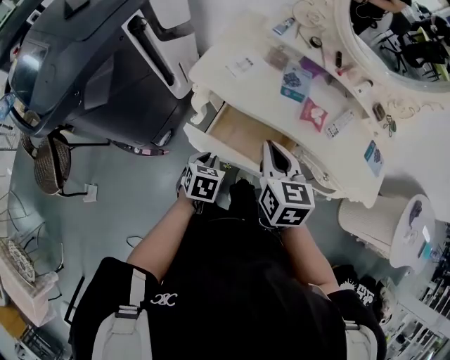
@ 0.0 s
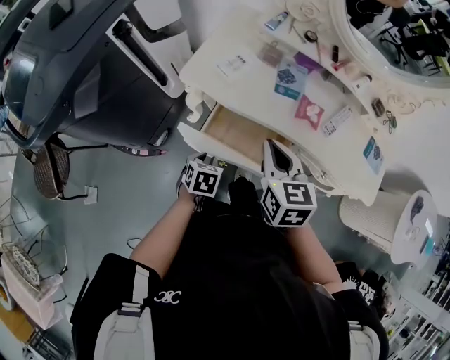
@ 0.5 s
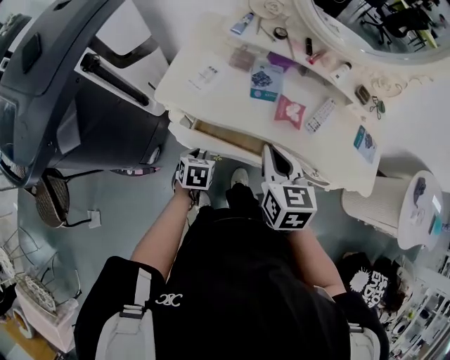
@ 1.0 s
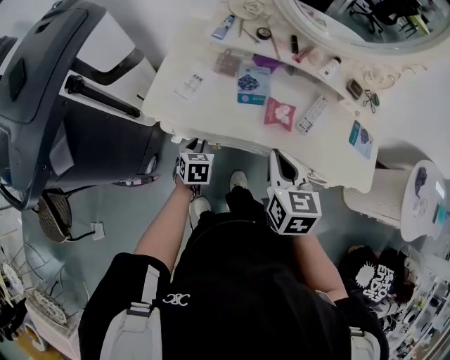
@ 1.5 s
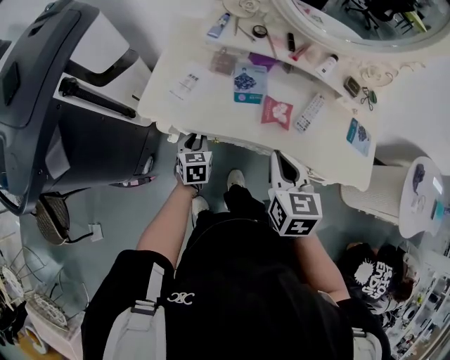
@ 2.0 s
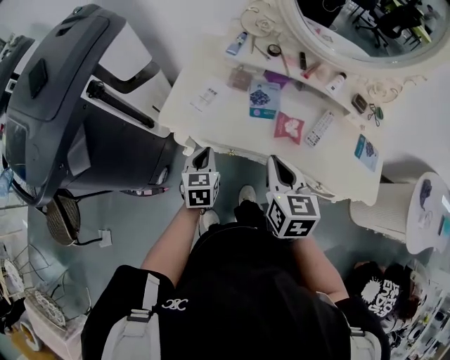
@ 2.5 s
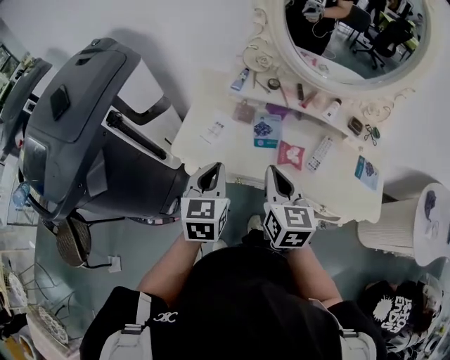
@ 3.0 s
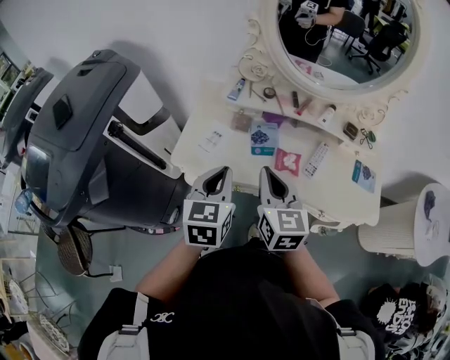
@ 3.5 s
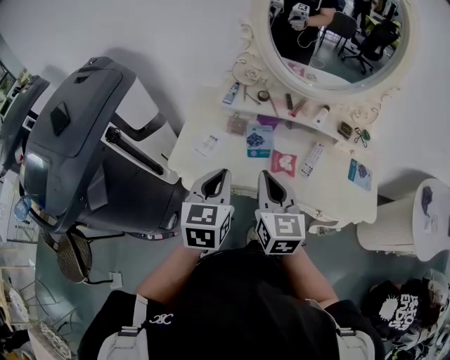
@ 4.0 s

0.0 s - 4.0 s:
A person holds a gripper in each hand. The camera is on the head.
0.0 s - 2.0 s: The left gripper is displaced forward by some 15 cm, while the right gripper shifts some 15 cm to the right.
2.0 s - 4.0 s: The left gripper moves upward, some 30 cm, and rotates some 20 degrees. Meanwhile the right gripper goes about 10 cm upward and to the left, and turns by about 20 degrees.

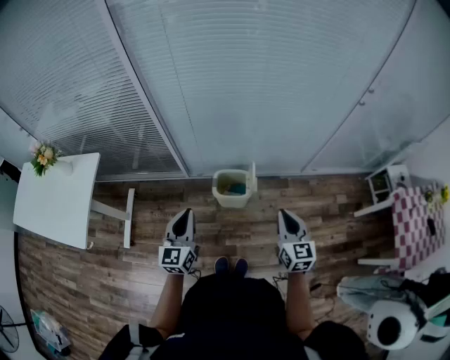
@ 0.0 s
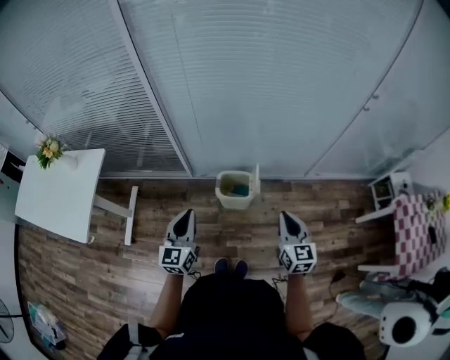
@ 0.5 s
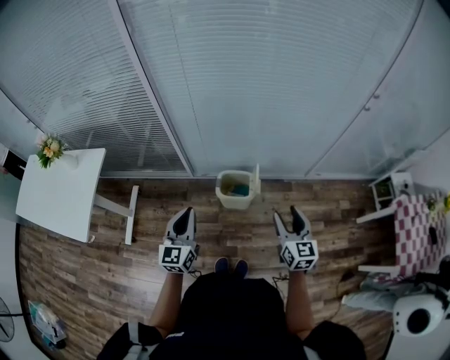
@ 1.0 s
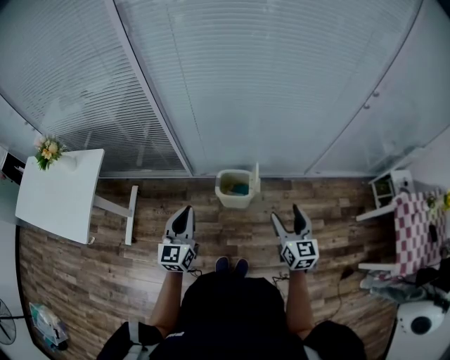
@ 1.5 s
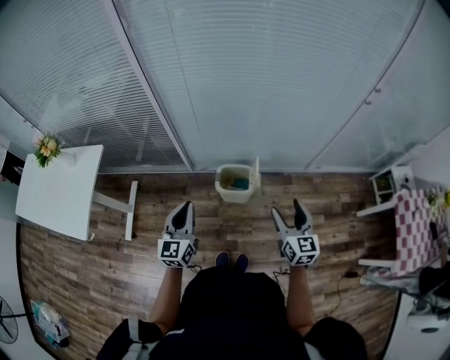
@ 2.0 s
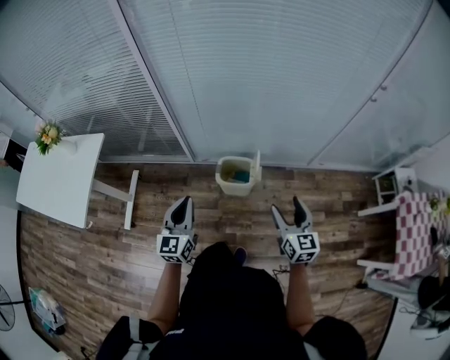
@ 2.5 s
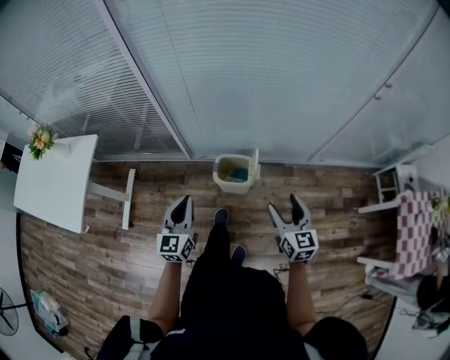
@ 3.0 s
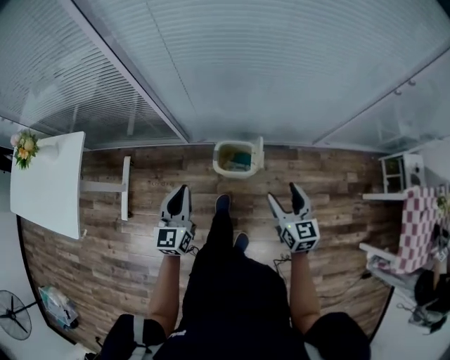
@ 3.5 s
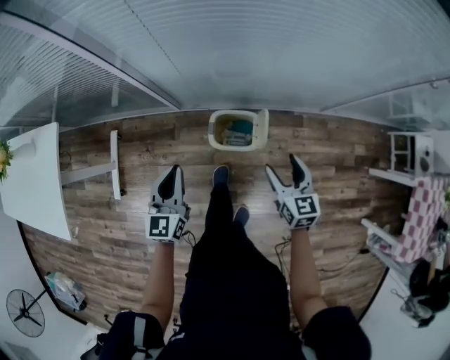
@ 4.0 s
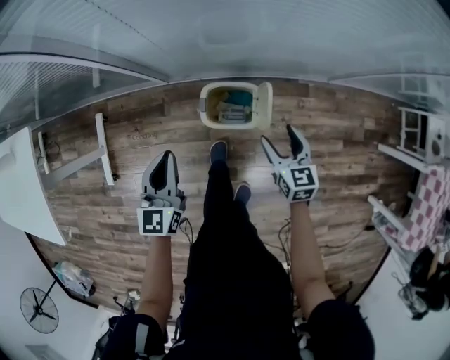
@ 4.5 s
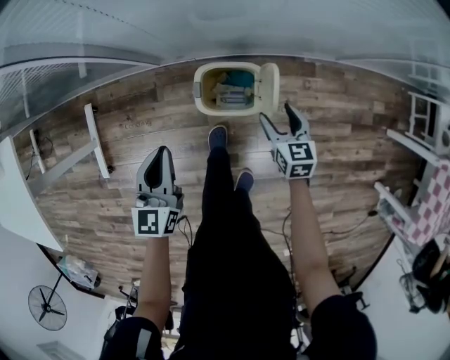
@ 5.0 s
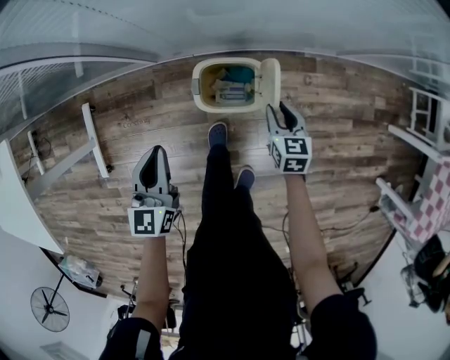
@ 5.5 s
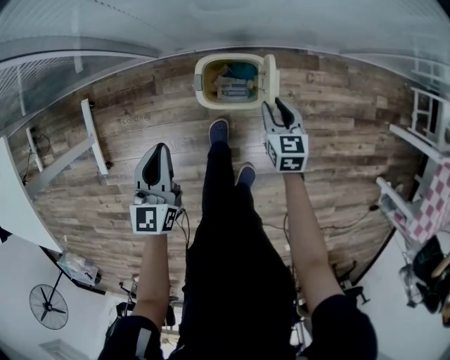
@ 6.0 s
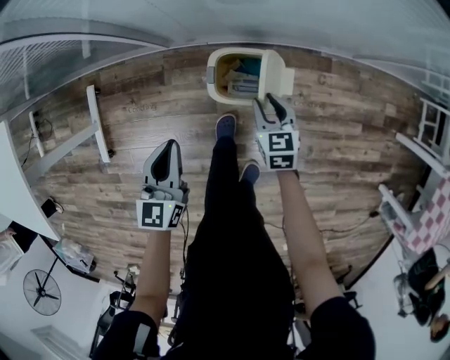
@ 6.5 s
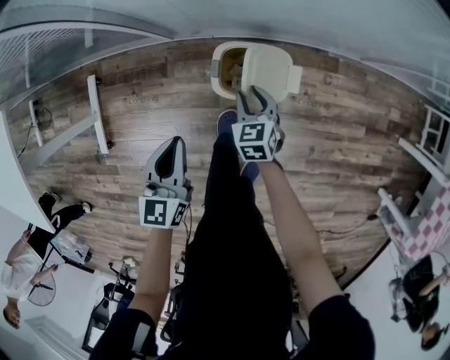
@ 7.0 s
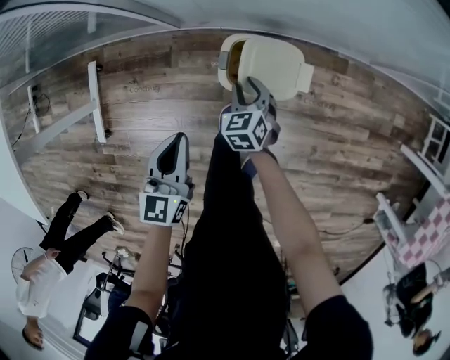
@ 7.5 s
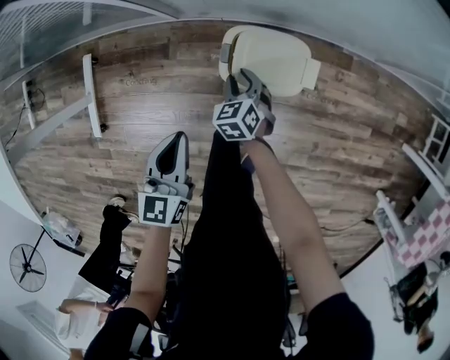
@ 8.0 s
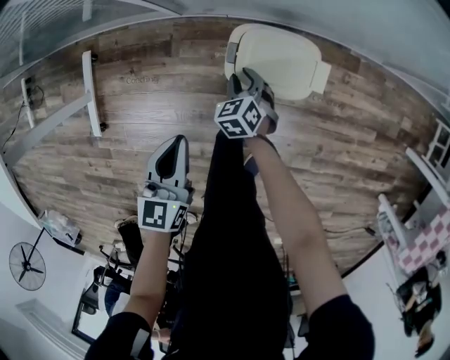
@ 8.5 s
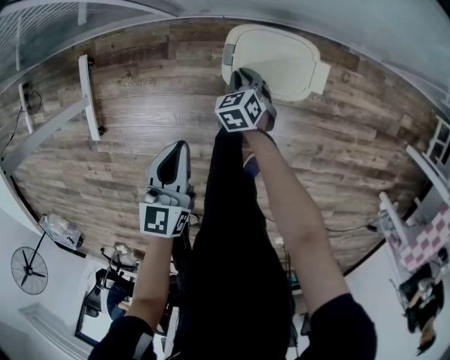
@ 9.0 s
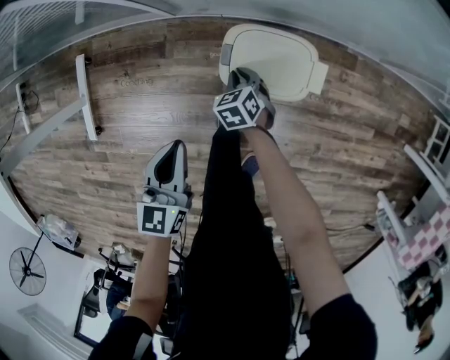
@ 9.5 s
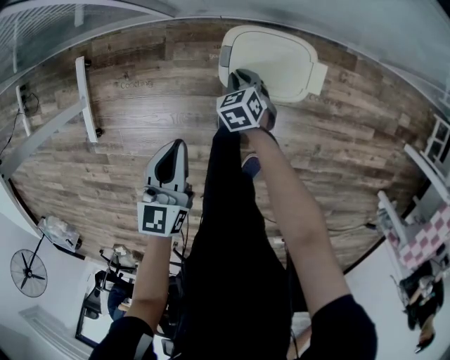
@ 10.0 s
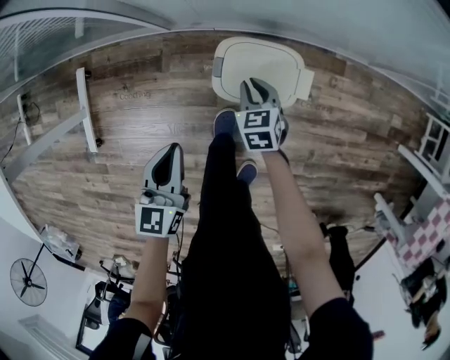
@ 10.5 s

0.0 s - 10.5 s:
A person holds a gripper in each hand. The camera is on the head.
0.0 s - 2.0 s: The right gripper opens.
2.0 s - 4.0 s: The right gripper is displaced downward and forward by about 20 cm, while the left gripper moves forward and downward, some 20 cm.
4.0 s - 6.5 s: The grippers both shift downward by roughly 20 cm. The right gripper closes up.
6.5 s - 8.5 s: The left gripper goes about 5 cm downward. The right gripper is displaced downward and to the left by about 20 cm, and changes its angle by approximately 30 degrees.
8.5 s - 10.5 s: The right gripper travels to the right and upward by approximately 10 cm.

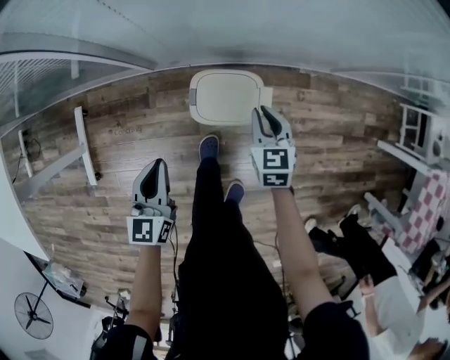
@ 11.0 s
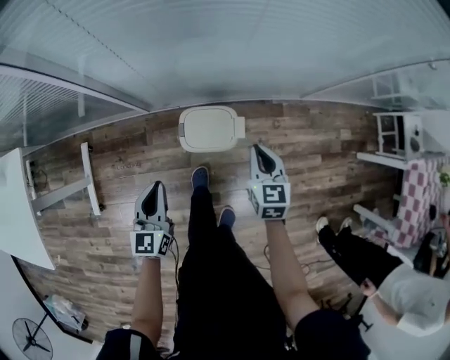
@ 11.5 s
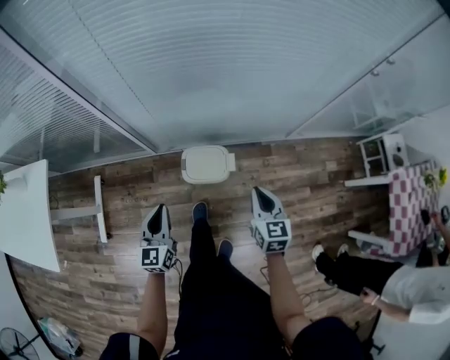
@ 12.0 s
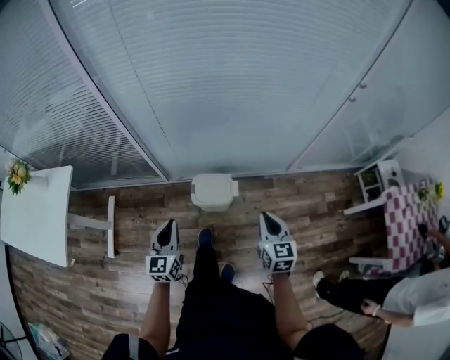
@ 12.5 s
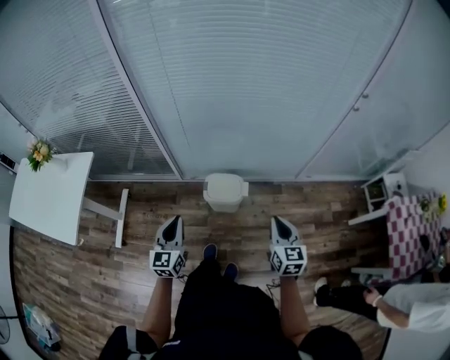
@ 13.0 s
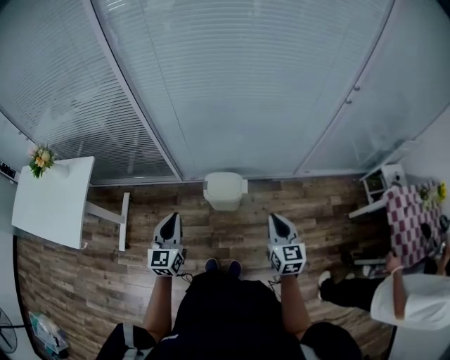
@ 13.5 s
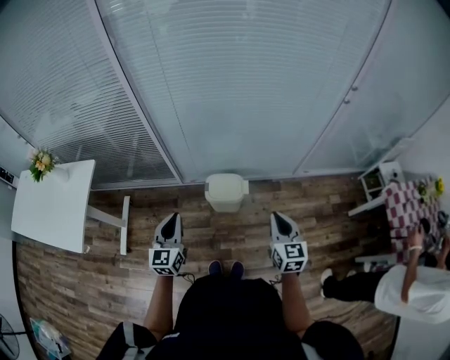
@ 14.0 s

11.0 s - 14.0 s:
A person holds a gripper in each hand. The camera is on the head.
11.0 s - 12.5 s: The right gripper shifts roughly 35 cm upward, backward and to the right, while the left gripper goes approximately 25 cm upward and backward.
12.5 s - 14.0 s: The left gripper goes some 10 cm upward and backward. The right gripper travels backward and upward by approximately 10 cm.

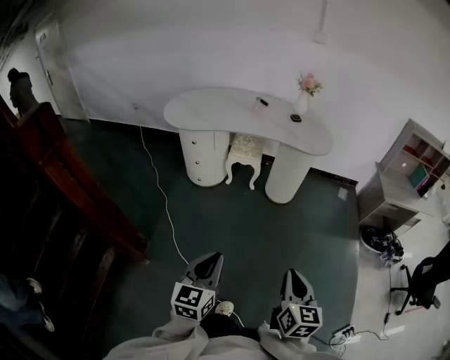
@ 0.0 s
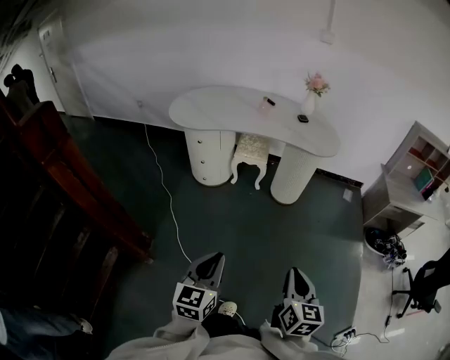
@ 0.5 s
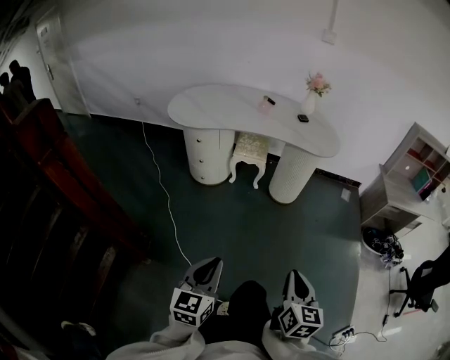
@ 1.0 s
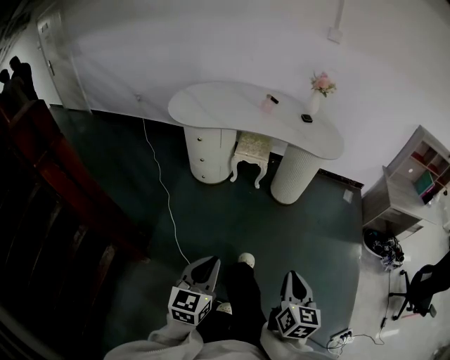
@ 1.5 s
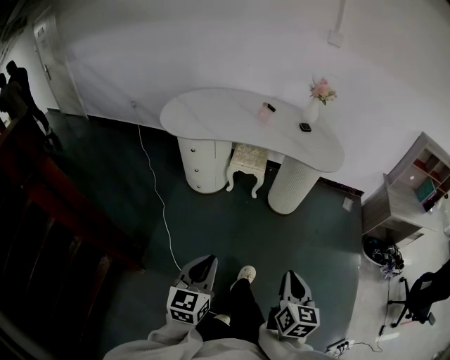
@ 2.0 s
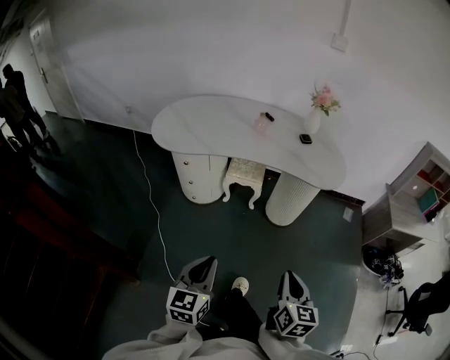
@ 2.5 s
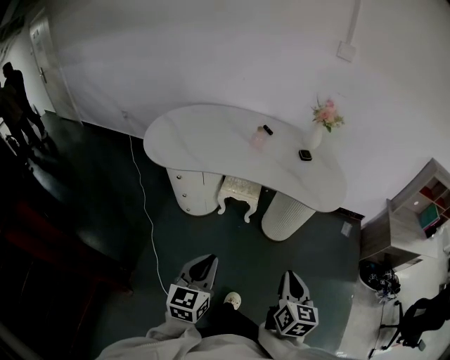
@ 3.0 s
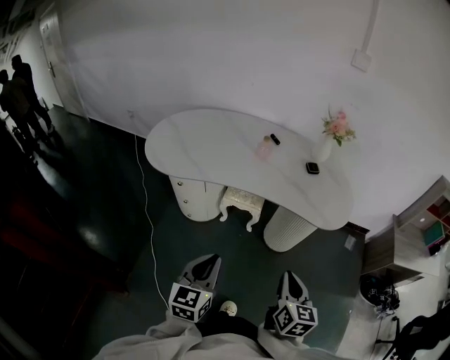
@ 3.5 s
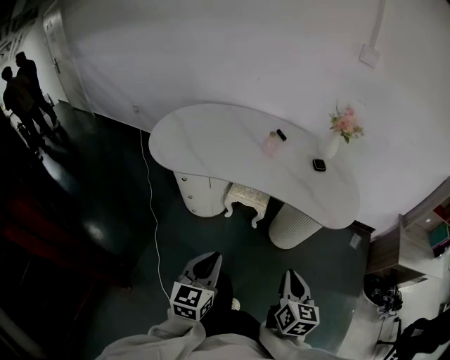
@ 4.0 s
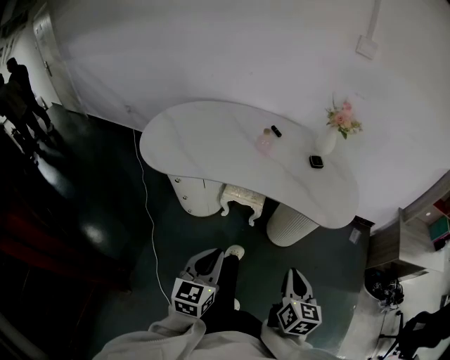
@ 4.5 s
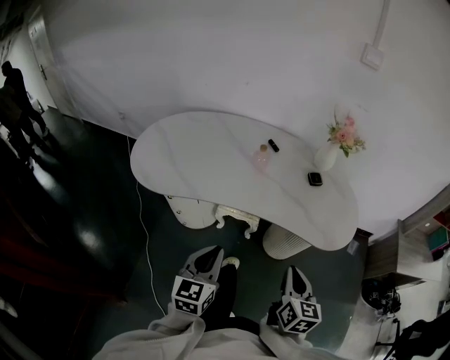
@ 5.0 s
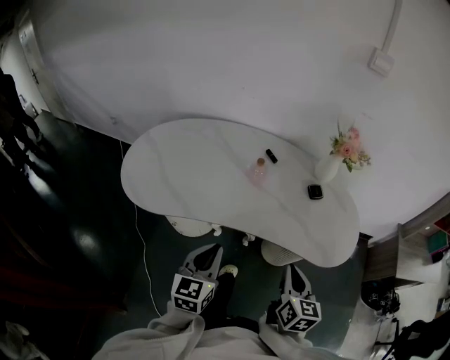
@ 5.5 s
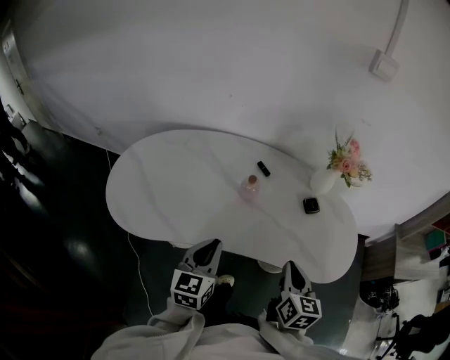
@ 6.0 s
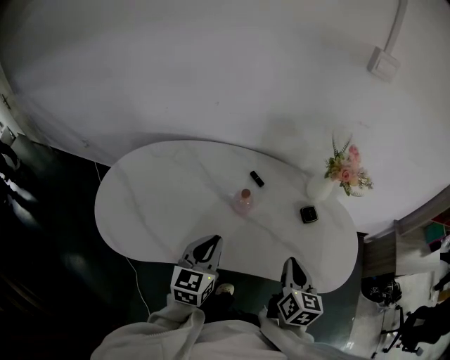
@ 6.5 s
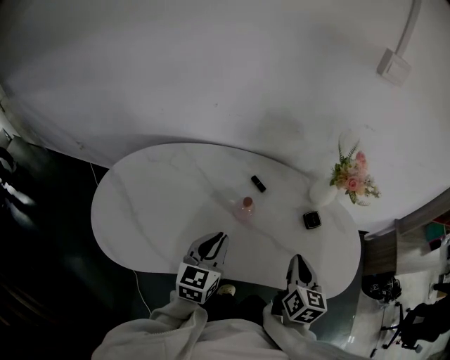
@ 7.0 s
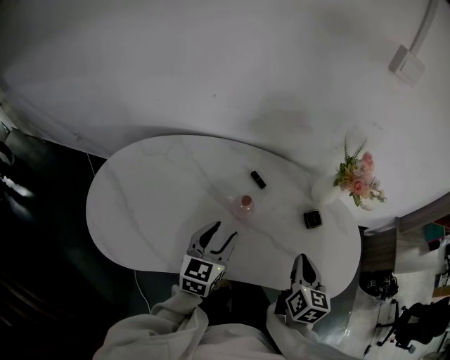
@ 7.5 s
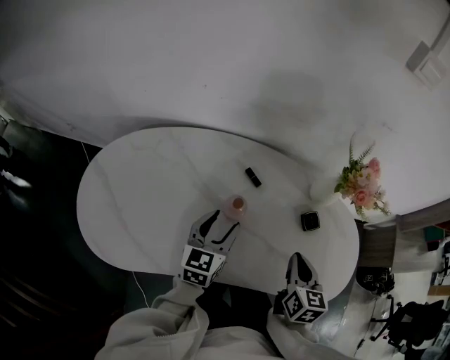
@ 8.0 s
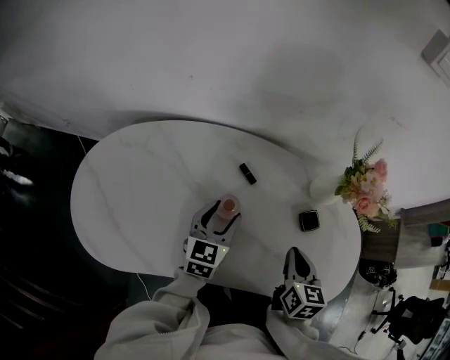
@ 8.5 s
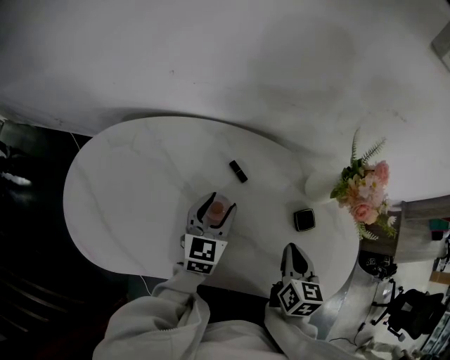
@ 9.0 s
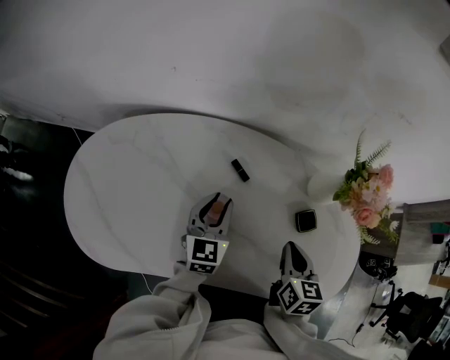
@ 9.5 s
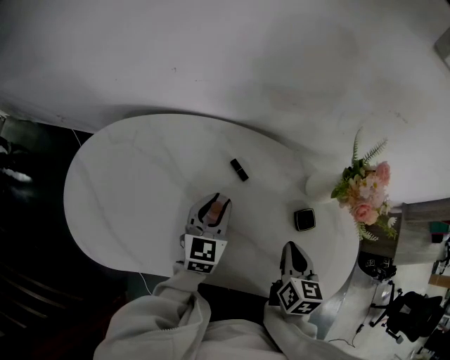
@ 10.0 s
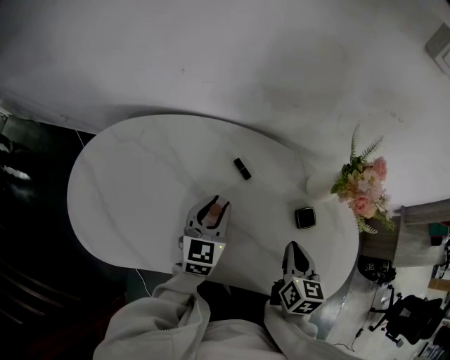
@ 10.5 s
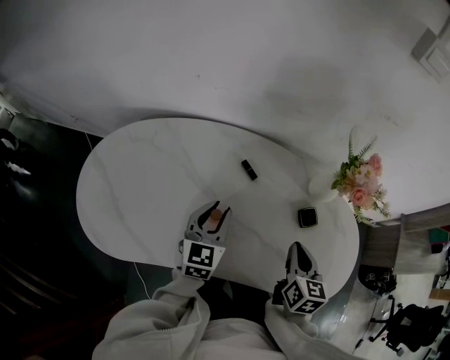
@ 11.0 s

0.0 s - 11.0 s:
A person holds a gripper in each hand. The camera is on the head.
0.0 s - 2.0 s: The two grippers go approximately 10 cm forward.
2.0 s - 3.5 s: The two grippers go roughly 30 cm forward.
3.5 s - 5.5 s: The grippers both shift forward by roughly 20 cm.
5.5 s - 7.5 s: The two grippers go some 25 cm forward. The left gripper opens up.
7.5 s - 9.0 s: The grippers both shift forward and downward by roughly 10 cm.
9.0 s - 11.0 s: The left gripper heads backward, covering approximately 5 cm, and closes up.
